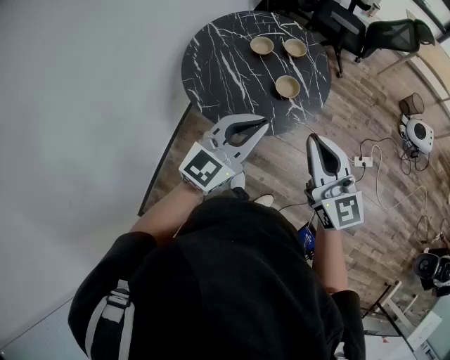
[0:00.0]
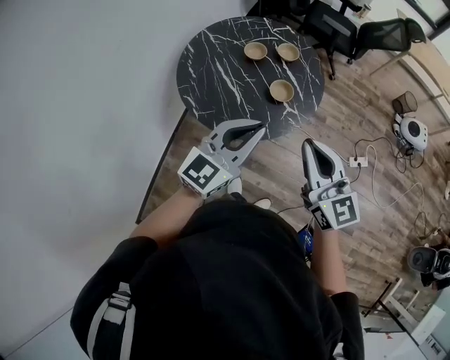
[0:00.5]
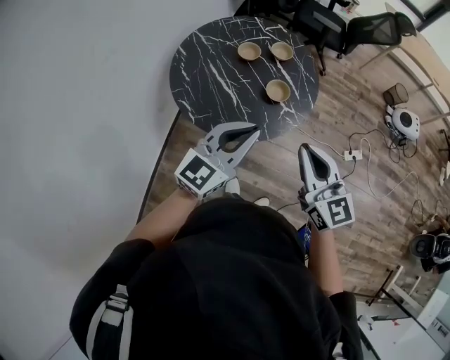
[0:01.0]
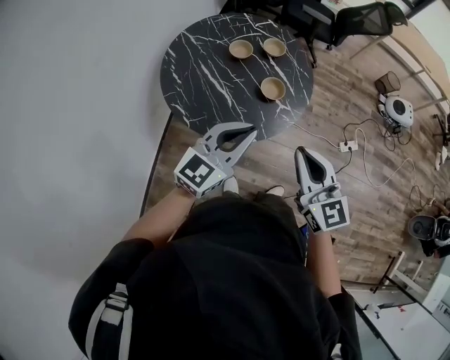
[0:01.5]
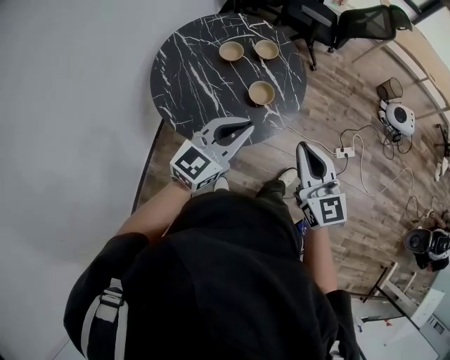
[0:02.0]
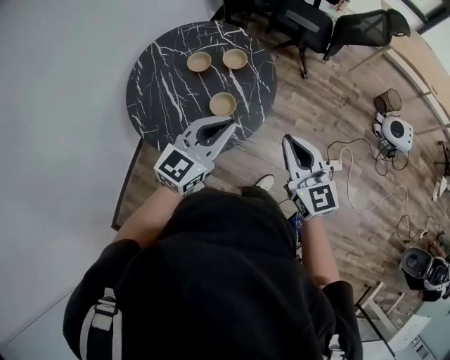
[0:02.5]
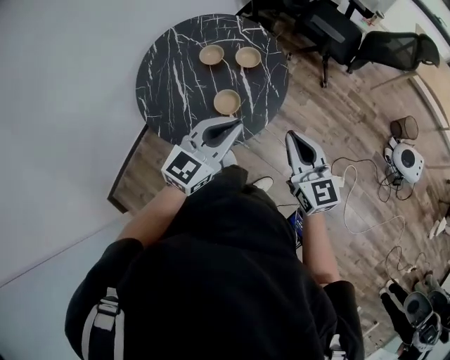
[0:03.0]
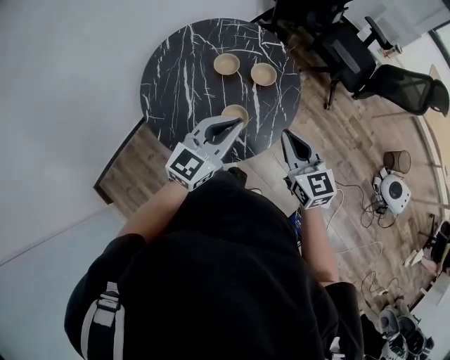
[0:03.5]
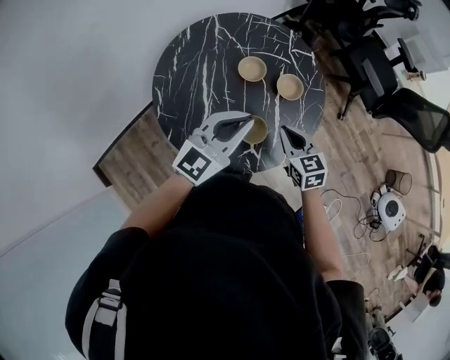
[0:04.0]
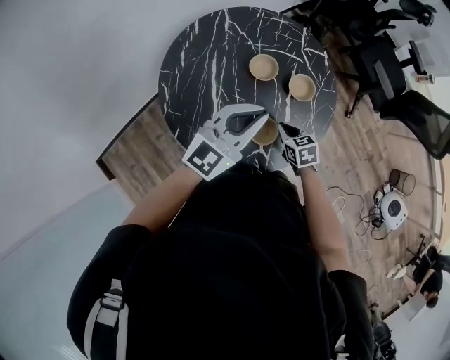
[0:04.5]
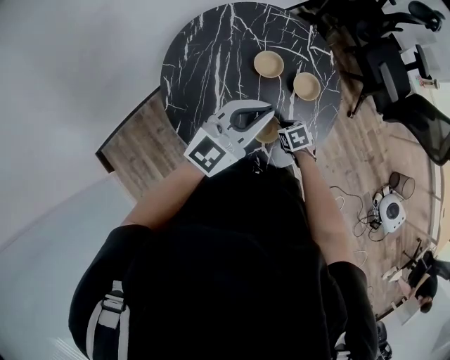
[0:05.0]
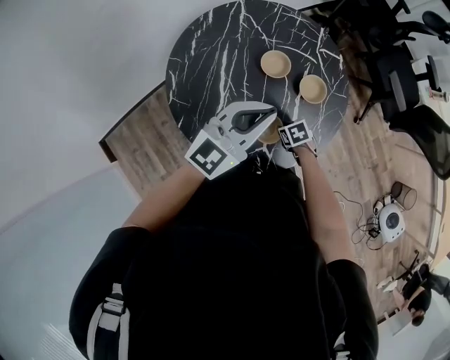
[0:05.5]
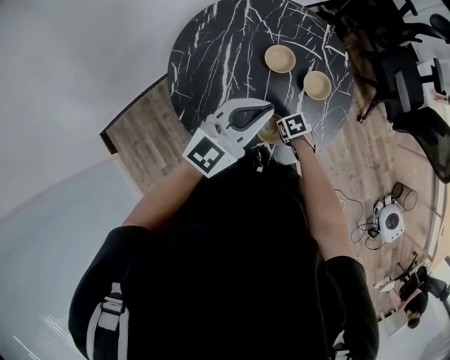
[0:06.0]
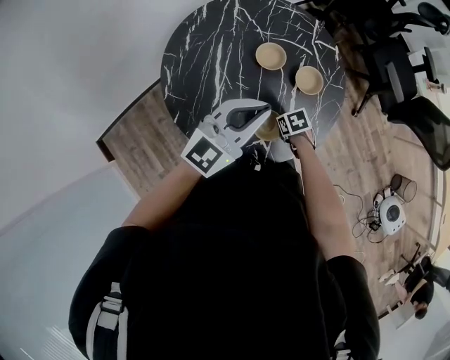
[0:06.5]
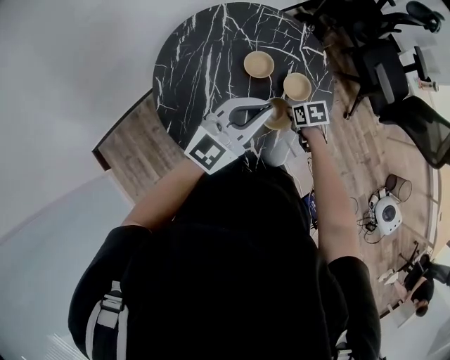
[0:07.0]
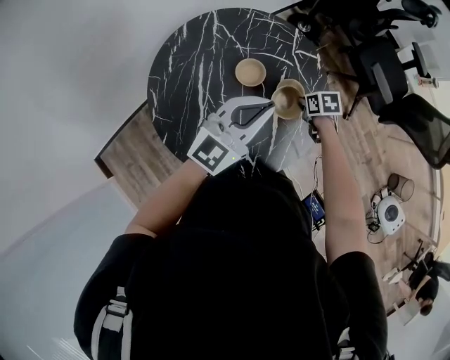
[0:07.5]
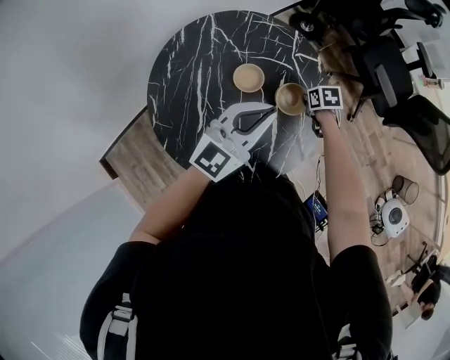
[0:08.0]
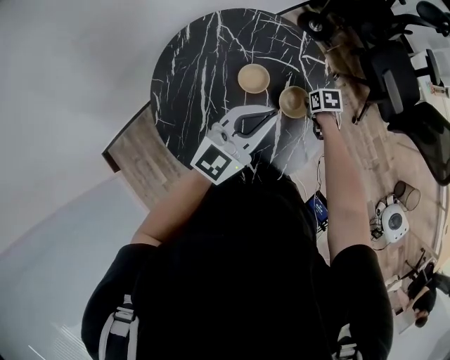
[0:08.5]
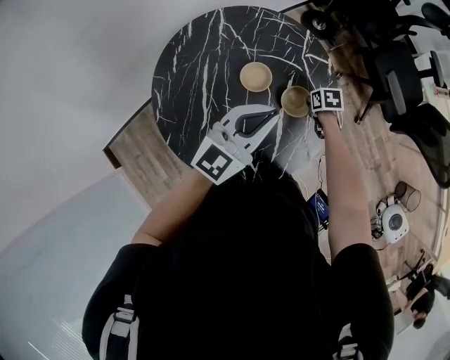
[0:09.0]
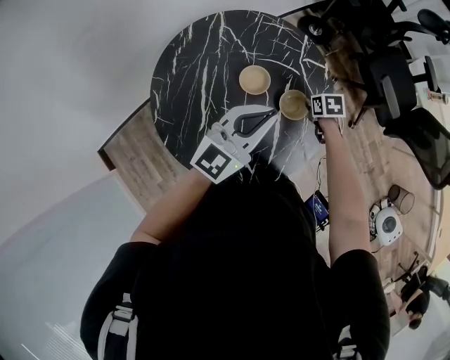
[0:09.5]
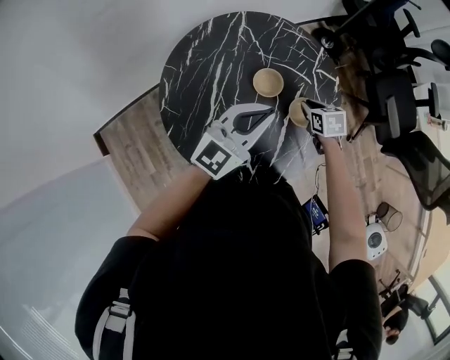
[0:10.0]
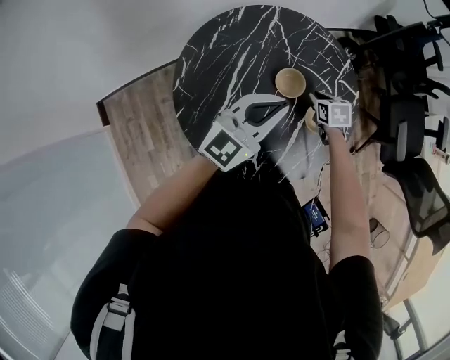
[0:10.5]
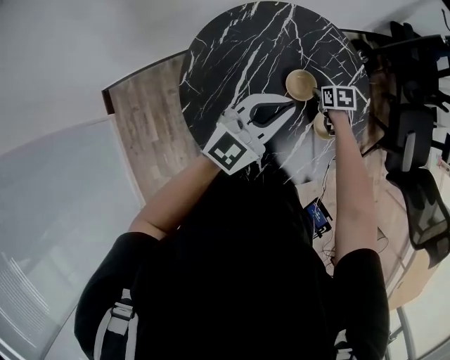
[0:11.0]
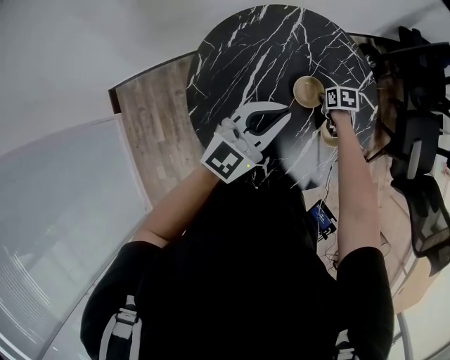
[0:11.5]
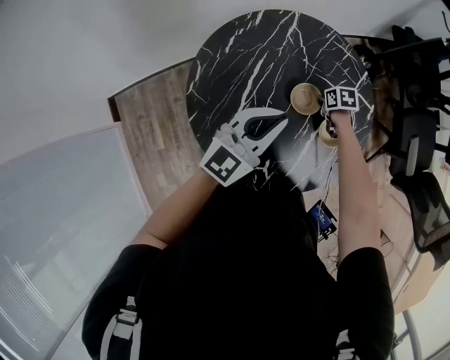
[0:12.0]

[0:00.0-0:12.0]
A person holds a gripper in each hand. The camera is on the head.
0.0 to 2.0 s: The left gripper travels forward and downward by approximately 10 cm; the right gripper goes approximately 10 cm downward and forward.
2.0 to 4.0 s: The left gripper ends up roughly 25 cm from where it was, and changes its angle by some 30 degrees; the right gripper moves about 35 cm, and turns by approximately 40 degrees.
4.0 to 6.0 s: The right gripper heads downward, covering roughly 25 cm, angles its fingers downward, by about 40 degrees, and opens, then closes once more.
6.0 to 8.0 s: The right gripper moves some 25 cm, and changes its angle by about 20 degrees. Meanwhile the left gripper moves approximately 15 cm.
8.0 to 10.0 s: The left gripper travels to the left by roughly 5 cm, while the right gripper goes some 10 cm to the left and upward, and turns by approximately 20 degrees.
10.0 to 12.0 s: The left gripper goes approximately 5 cm to the left, while the right gripper heads downward, forward and to the left, covering approximately 15 cm.

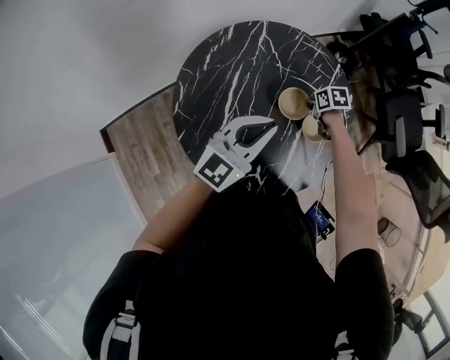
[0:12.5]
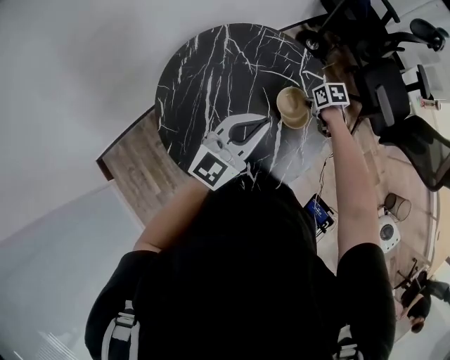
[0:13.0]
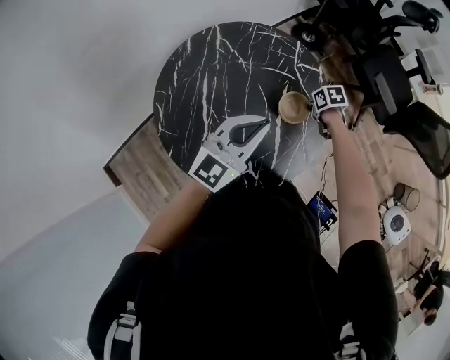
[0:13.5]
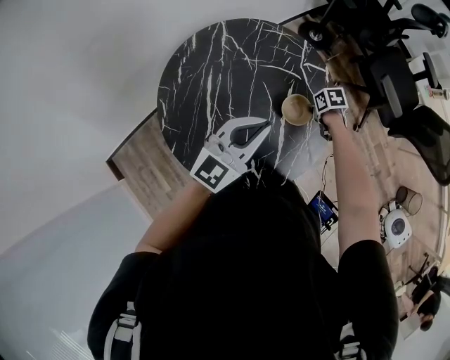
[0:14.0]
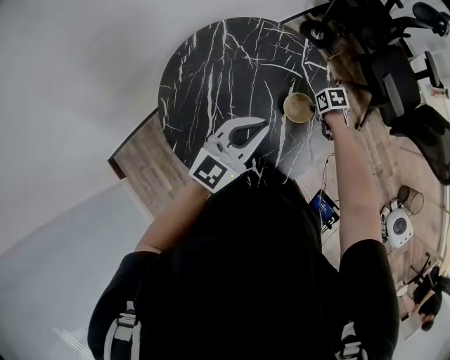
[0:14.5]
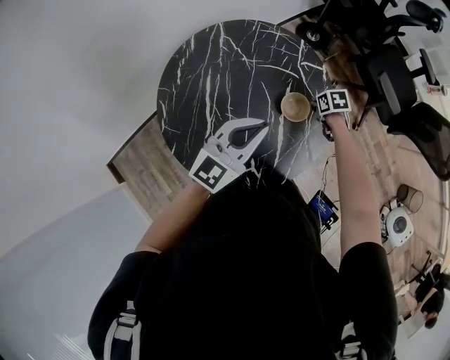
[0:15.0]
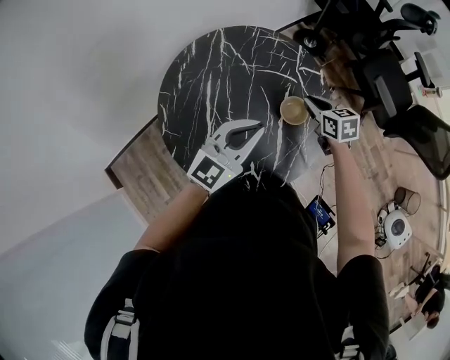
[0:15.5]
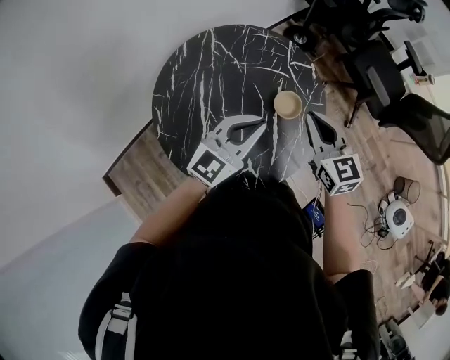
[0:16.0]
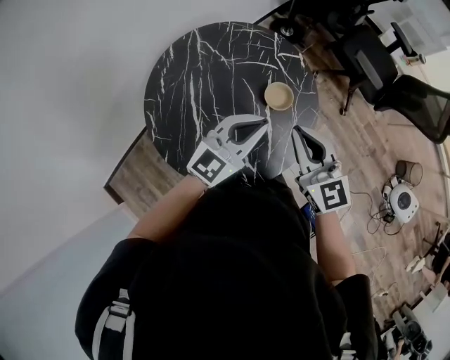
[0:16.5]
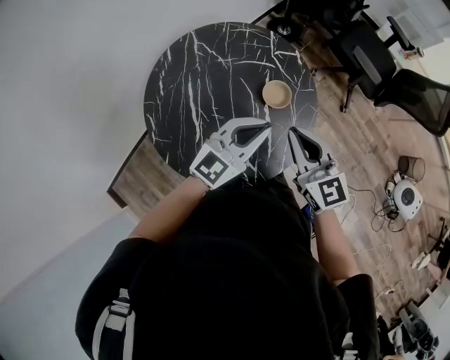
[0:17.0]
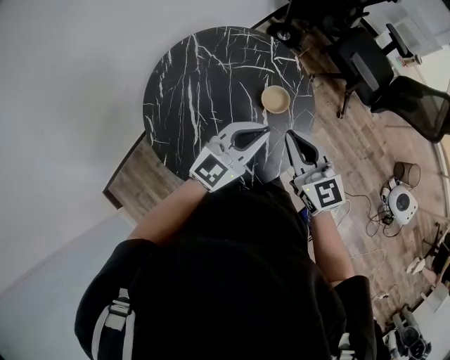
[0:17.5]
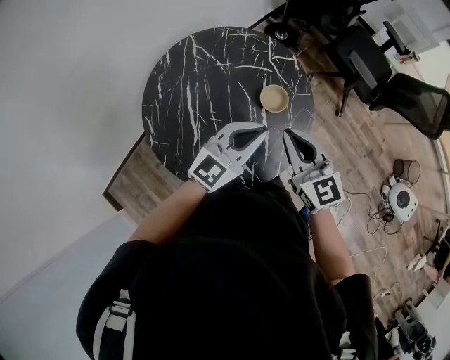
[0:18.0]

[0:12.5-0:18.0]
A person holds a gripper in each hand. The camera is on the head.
12.5 to 14.5 s: The right gripper moves roughly 15 cm; the left gripper shifts by roughly 10 cm.
14.5 to 16.0 s: The right gripper heads upward, covering about 30 cm, and points its fingers some 50 degrees further upward.
16.0 to 18.0 s: The left gripper changes place by approximately 5 cm. Meanwhile the right gripper travels backward by roughly 10 cm.

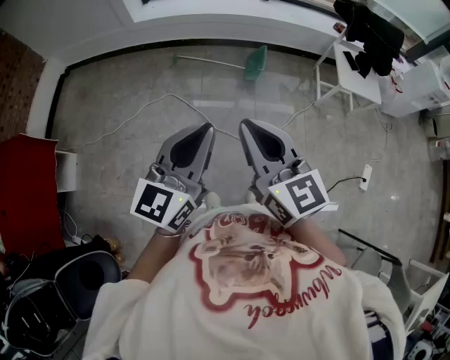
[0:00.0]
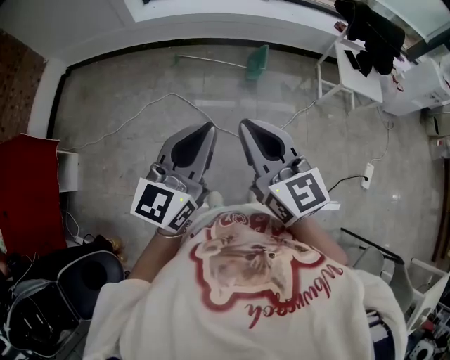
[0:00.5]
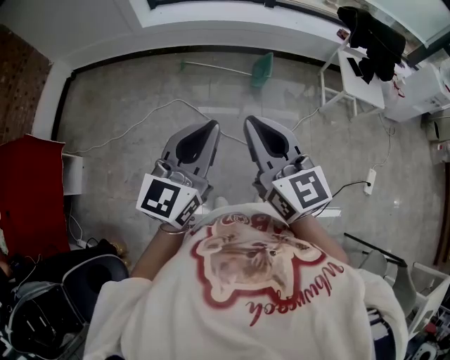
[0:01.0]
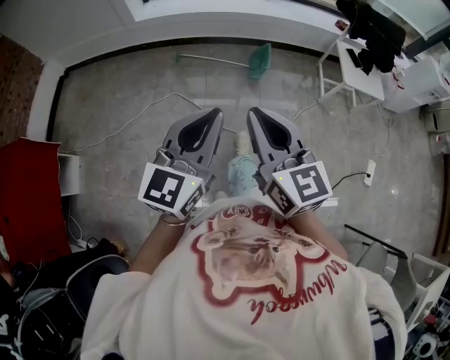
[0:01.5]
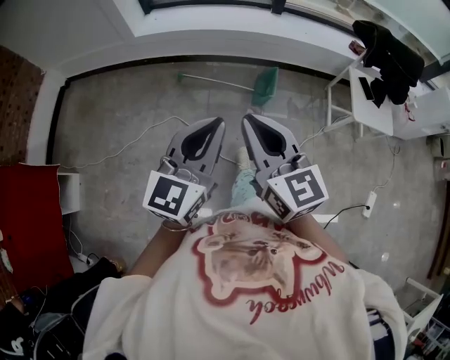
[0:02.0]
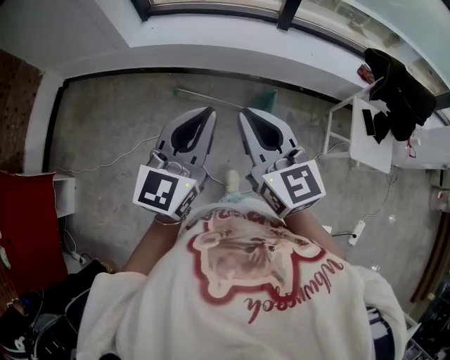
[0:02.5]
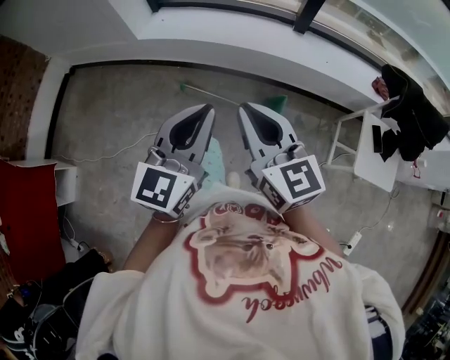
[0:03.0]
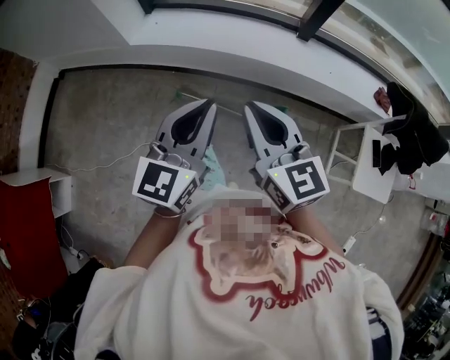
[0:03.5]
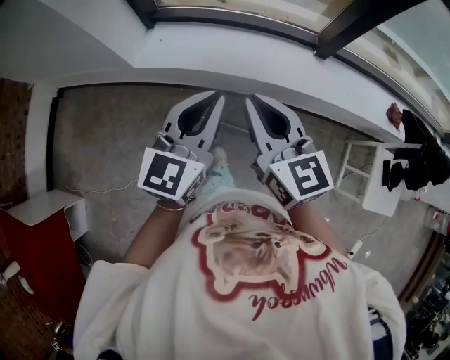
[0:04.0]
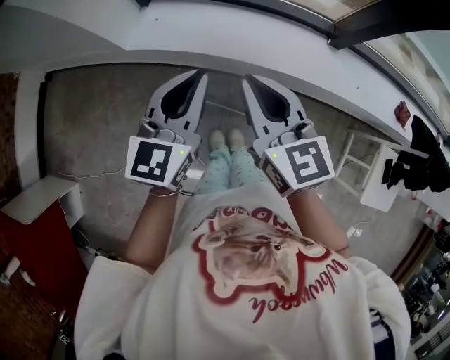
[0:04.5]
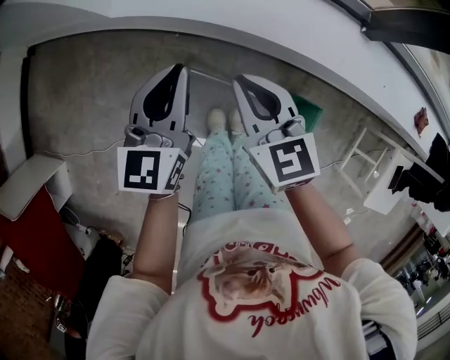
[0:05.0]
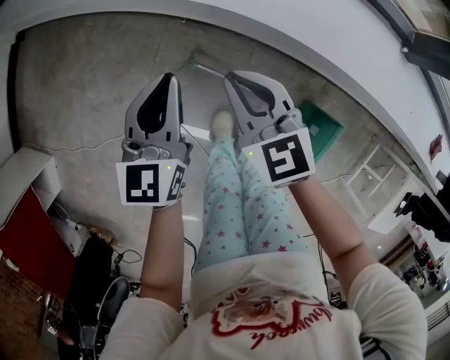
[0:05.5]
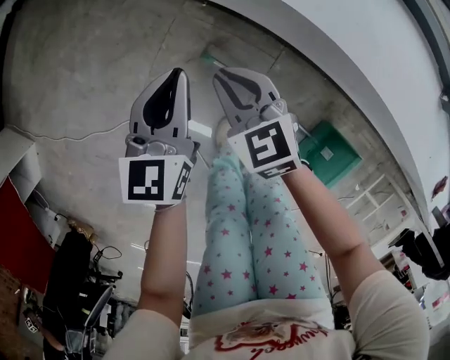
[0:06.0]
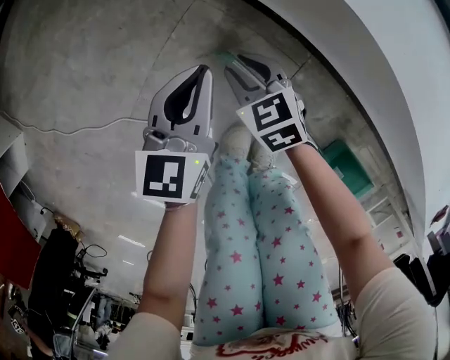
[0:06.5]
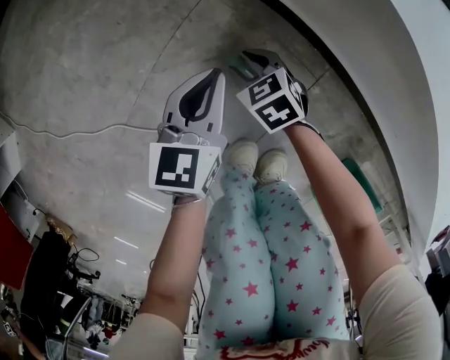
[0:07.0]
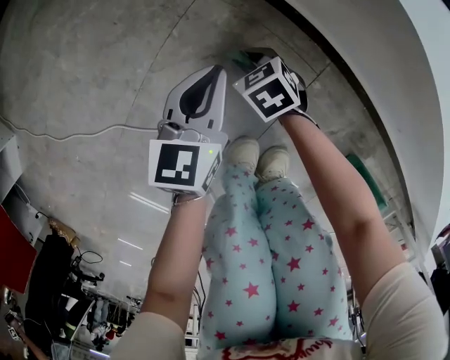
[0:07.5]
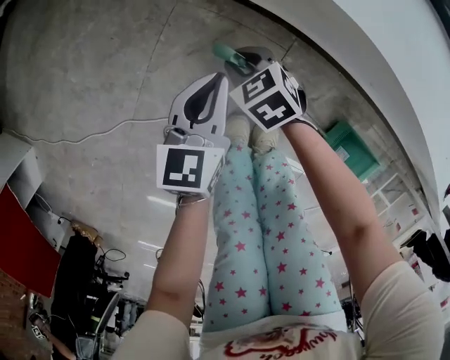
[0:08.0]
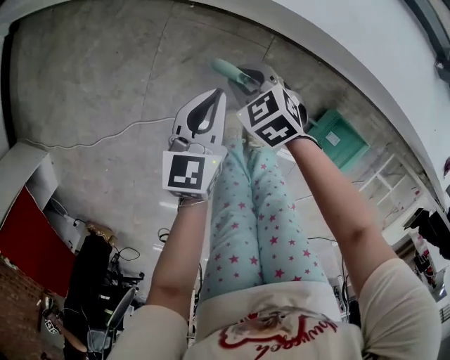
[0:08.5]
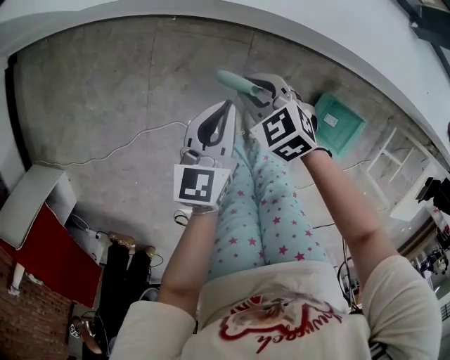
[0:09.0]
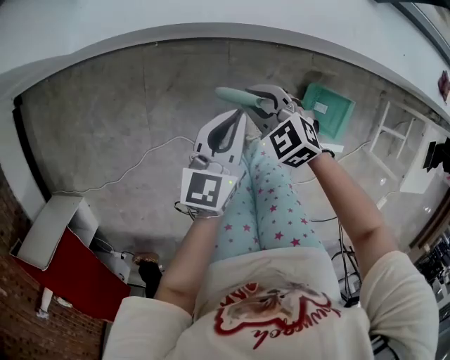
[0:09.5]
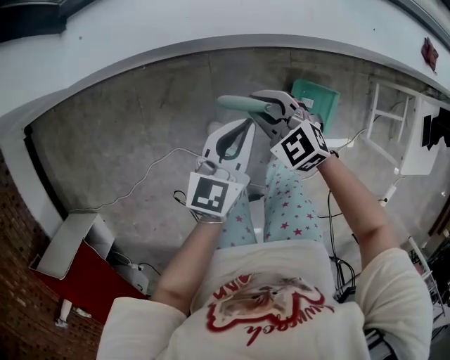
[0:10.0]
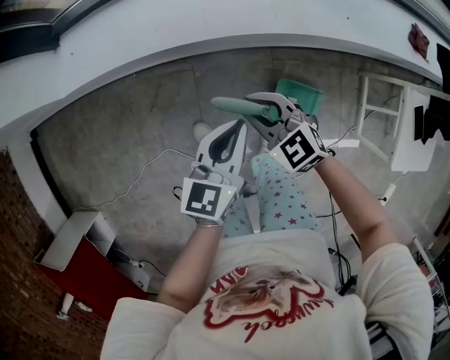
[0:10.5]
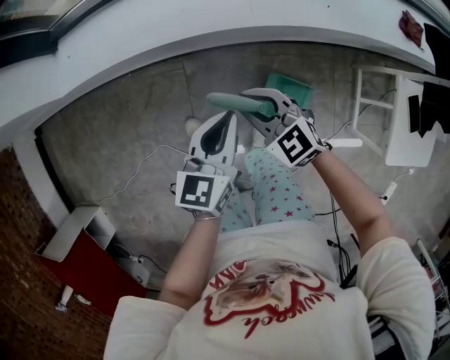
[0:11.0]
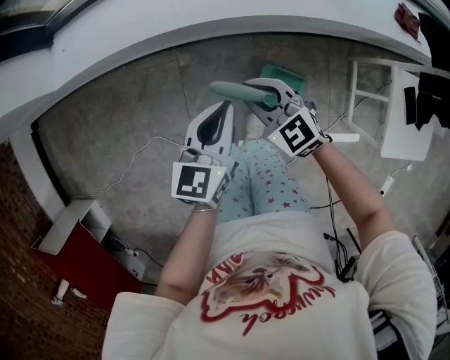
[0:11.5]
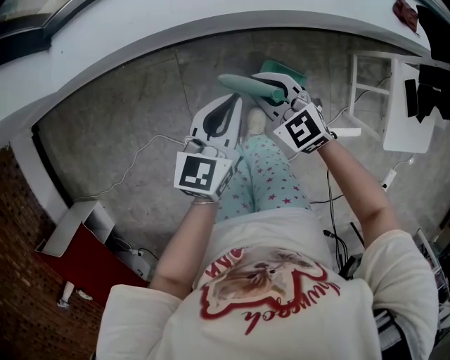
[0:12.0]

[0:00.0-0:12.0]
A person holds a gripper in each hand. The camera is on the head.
0.0 to 2.0 s: The grippers both shift forward by approximately 25 cm.
2.0 to 4.0 s: The pair of grippers is taken forward, approximately 60 cm.
4.0 to 6.0 s: Both grippers travel together downward, roughly 60 cm. The left gripper turns by roughly 40 degrees. Meanwhile the right gripper turns by about 40 degrees.
6.0 to 8.0 s: The left gripper is displaced downward by approximately 10 cm; the right gripper is displaced downward by about 15 cm, and rotates about 20 degrees.
8.0 to 10.0 s: The right gripper shifts about 30 cm upward, and rotates approximately 30 degrees. The left gripper moves about 40 cm, and swivels about 40 degrees.
10.0 to 12.0 s: Both grippers move to the right, some 20 cm.
